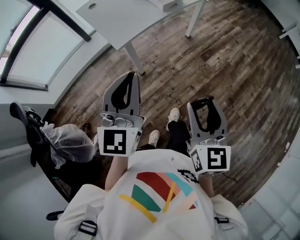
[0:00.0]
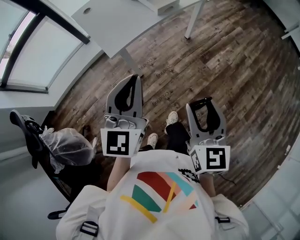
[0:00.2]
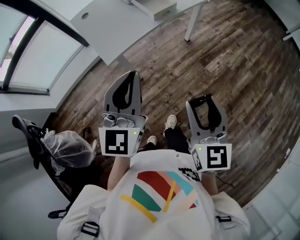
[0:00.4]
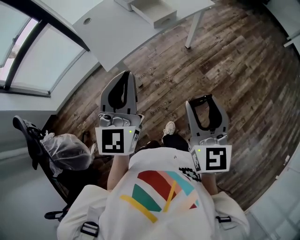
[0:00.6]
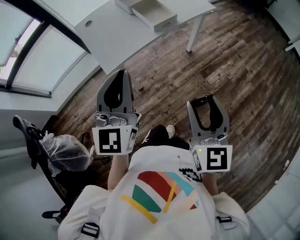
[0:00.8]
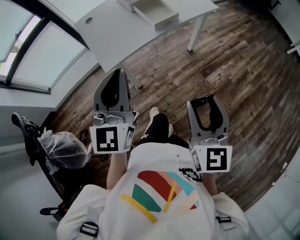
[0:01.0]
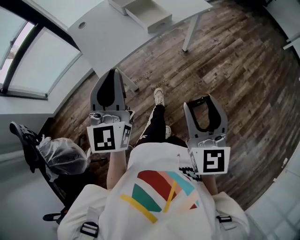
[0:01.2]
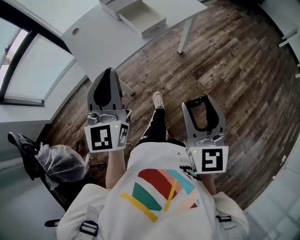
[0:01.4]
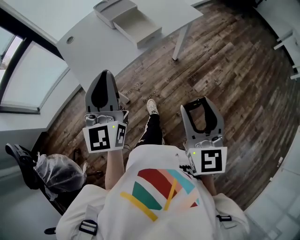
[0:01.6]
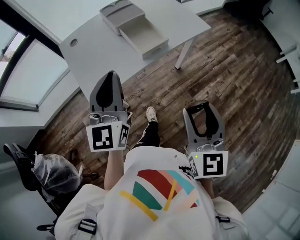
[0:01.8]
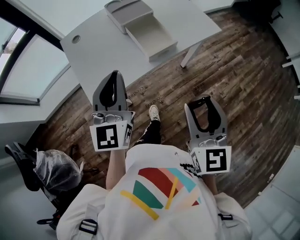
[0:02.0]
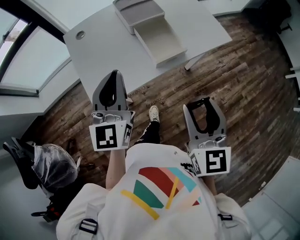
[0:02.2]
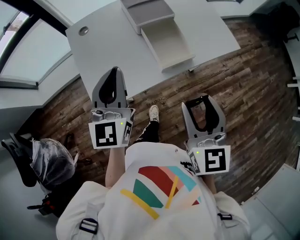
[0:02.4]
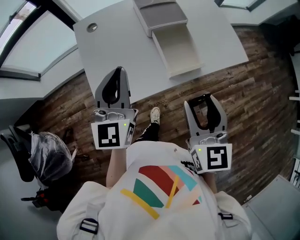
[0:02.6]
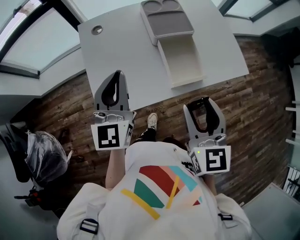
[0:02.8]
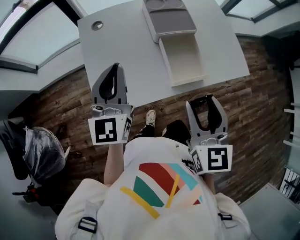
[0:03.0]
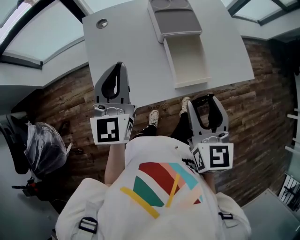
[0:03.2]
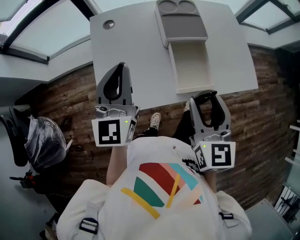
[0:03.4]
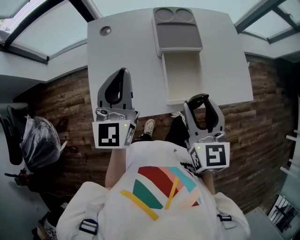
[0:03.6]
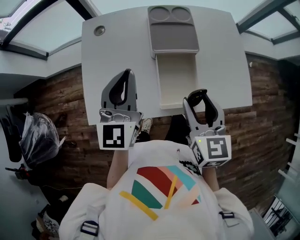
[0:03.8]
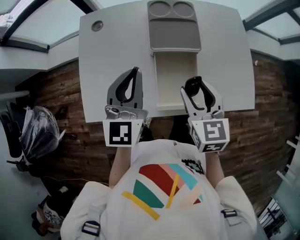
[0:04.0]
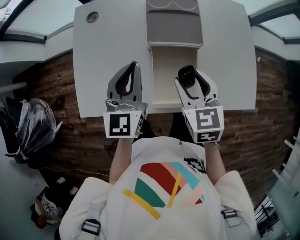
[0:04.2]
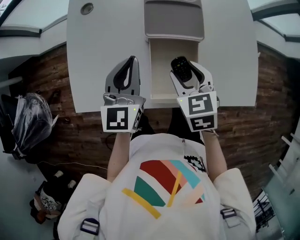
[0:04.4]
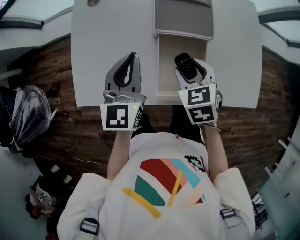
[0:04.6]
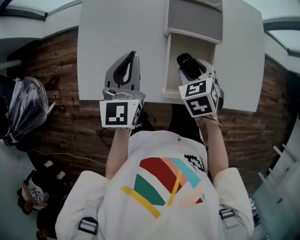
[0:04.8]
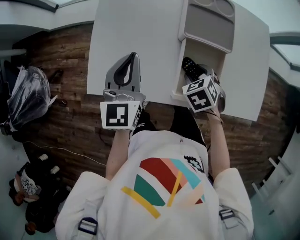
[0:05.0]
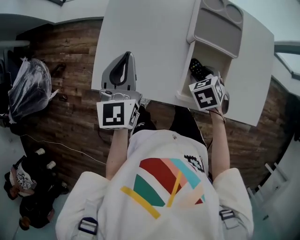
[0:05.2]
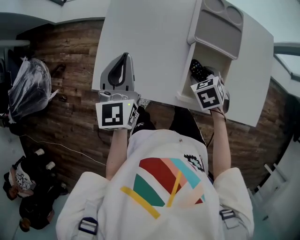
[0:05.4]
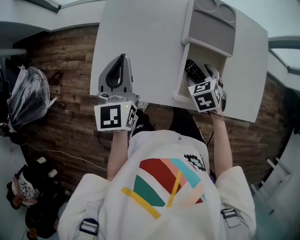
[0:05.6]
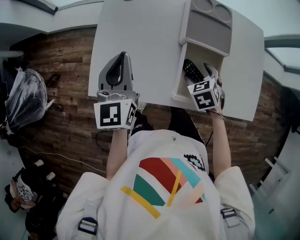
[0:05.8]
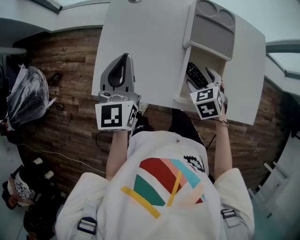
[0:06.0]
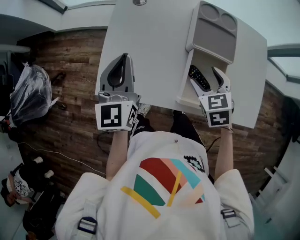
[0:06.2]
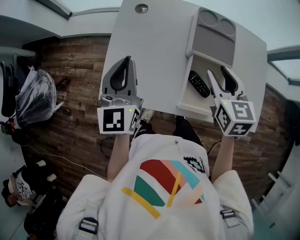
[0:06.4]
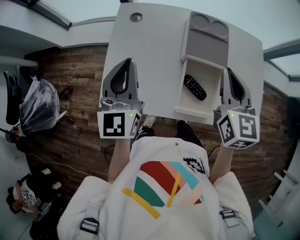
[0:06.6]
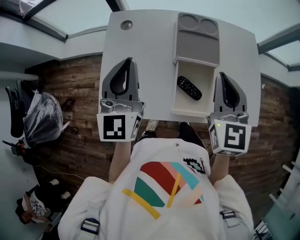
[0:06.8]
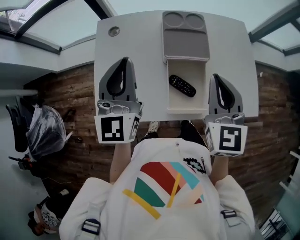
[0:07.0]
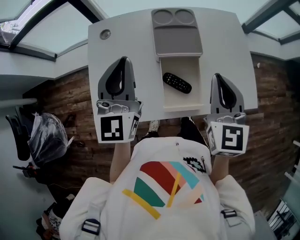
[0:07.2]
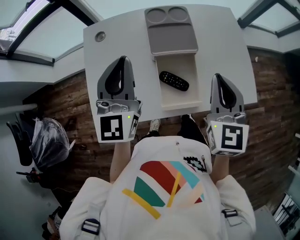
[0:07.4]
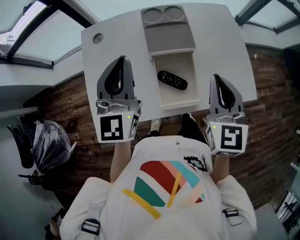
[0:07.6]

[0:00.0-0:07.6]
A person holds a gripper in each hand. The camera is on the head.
0:00.0 to 0:01.6: The left gripper moves forward, roughly 25 cm. Meanwhile the right gripper travels forward and to the right by some 25 cm.
0:01.6 to 0:03.0: The two grippers go approximately 25 cm forward. The right gripper swivels approximately 20 degrees. The left gripper changes its angle by roughly 20 degrees.
0:03.0 to 0:04.6: The left gripper shifts some 15 cm downward, to the right and forward, while the right gripper shifts approximately 25 cm forward and downward, and tips its fingers downward by some 30 degrees.
0:04.6 to 0:06.0: The left gripper goes roughly 15 cm to the left.
0:06.0 to 0:07.6: The right gripper moves upward and to the right, approximately 25 cm, points its fingers roughly 40 degrees further upward, and closes. The left gripper travels to the right and upward by some 20 cm, and turns by roughly 20 degrees.

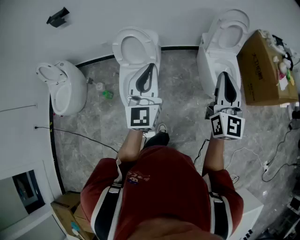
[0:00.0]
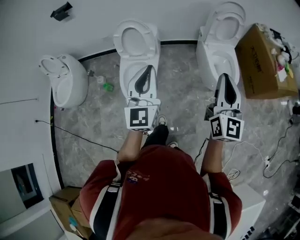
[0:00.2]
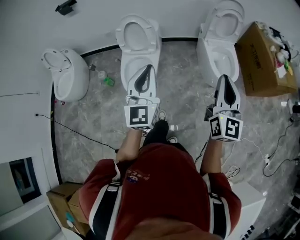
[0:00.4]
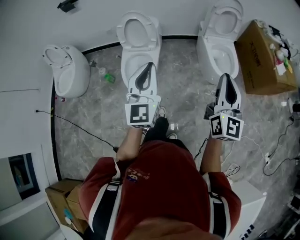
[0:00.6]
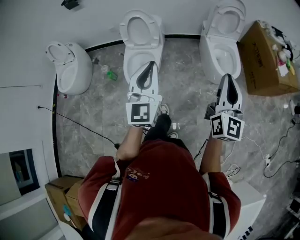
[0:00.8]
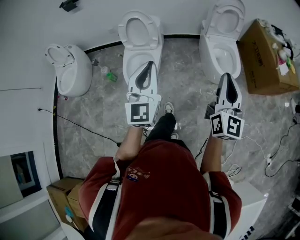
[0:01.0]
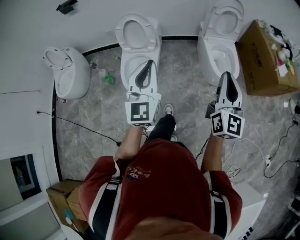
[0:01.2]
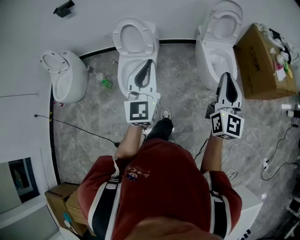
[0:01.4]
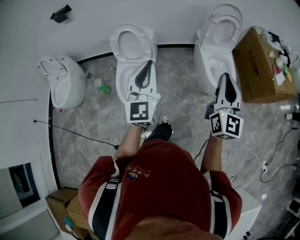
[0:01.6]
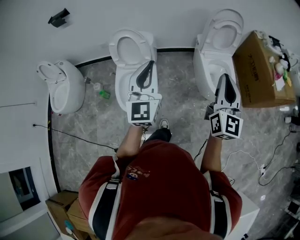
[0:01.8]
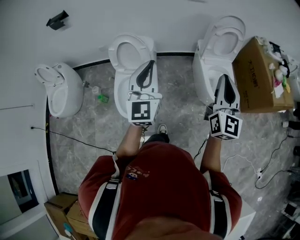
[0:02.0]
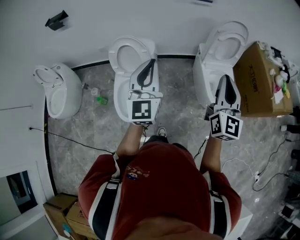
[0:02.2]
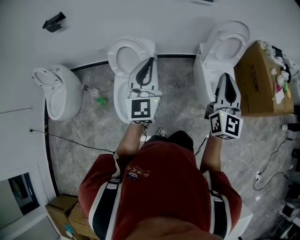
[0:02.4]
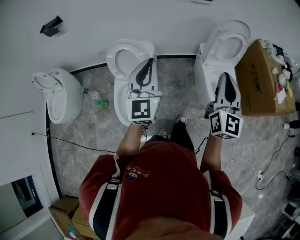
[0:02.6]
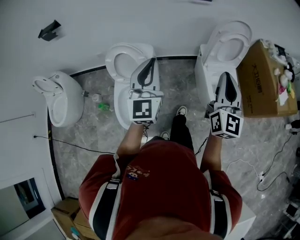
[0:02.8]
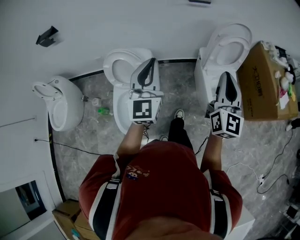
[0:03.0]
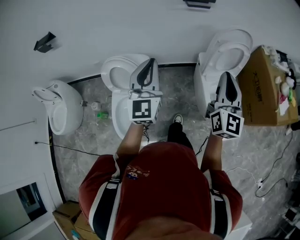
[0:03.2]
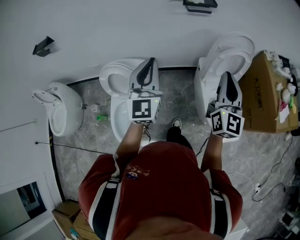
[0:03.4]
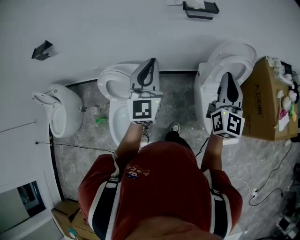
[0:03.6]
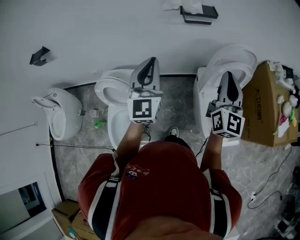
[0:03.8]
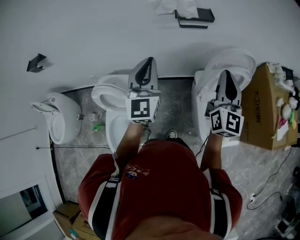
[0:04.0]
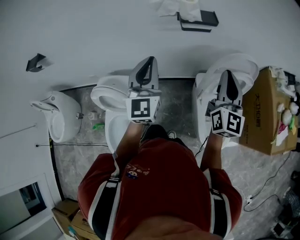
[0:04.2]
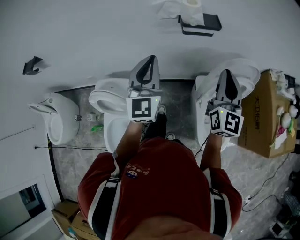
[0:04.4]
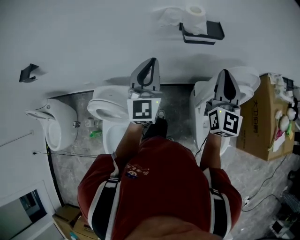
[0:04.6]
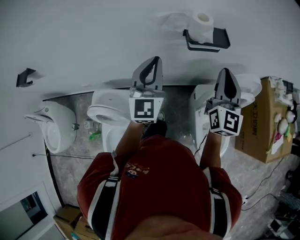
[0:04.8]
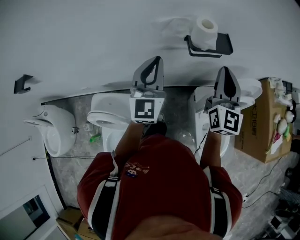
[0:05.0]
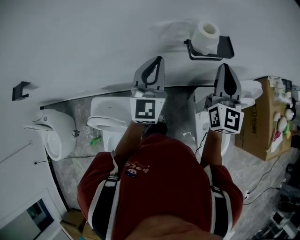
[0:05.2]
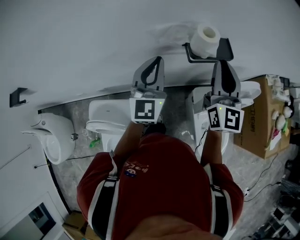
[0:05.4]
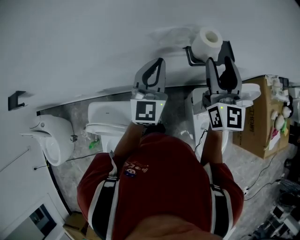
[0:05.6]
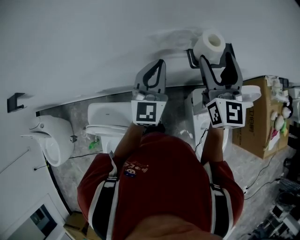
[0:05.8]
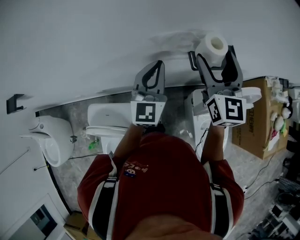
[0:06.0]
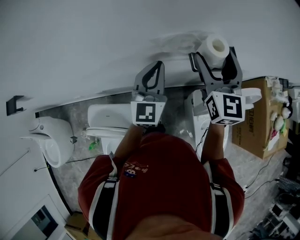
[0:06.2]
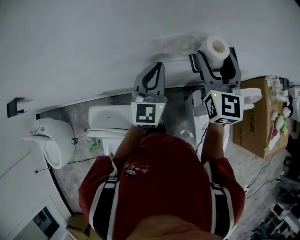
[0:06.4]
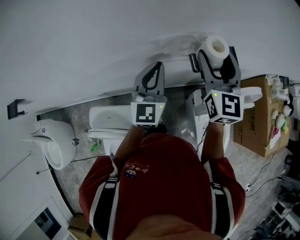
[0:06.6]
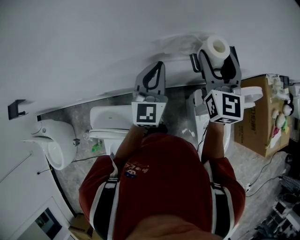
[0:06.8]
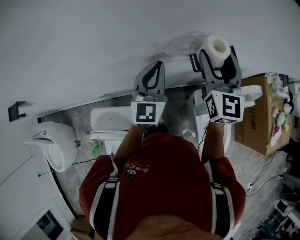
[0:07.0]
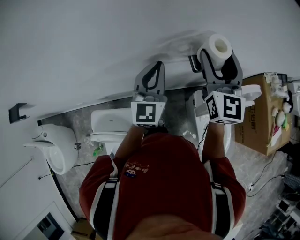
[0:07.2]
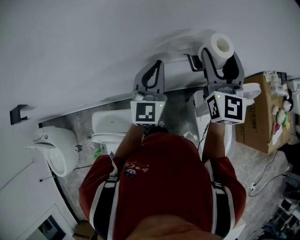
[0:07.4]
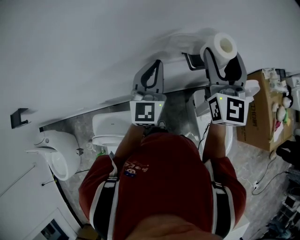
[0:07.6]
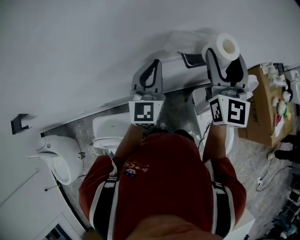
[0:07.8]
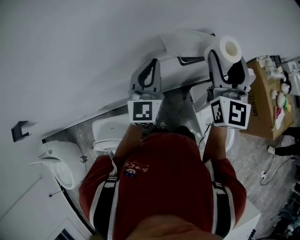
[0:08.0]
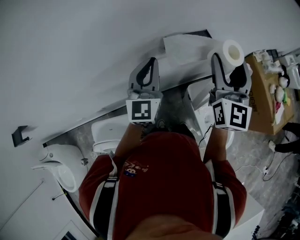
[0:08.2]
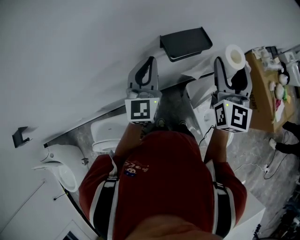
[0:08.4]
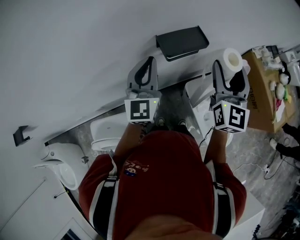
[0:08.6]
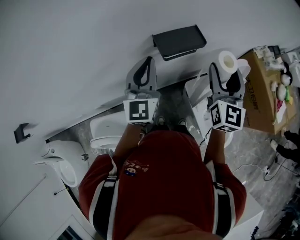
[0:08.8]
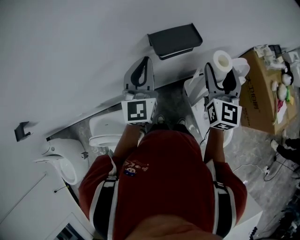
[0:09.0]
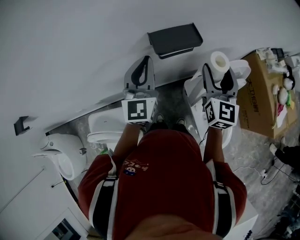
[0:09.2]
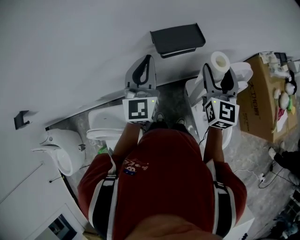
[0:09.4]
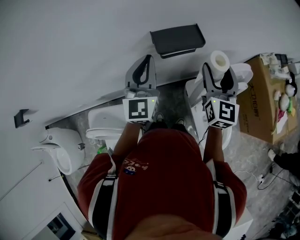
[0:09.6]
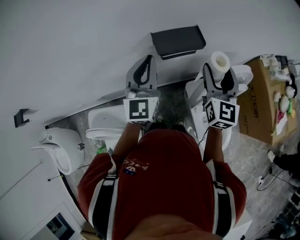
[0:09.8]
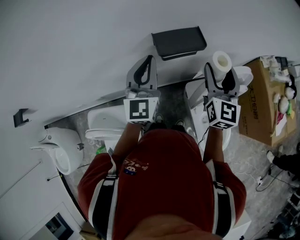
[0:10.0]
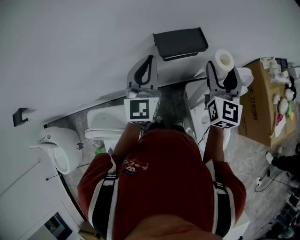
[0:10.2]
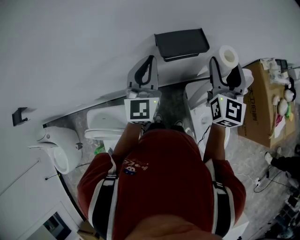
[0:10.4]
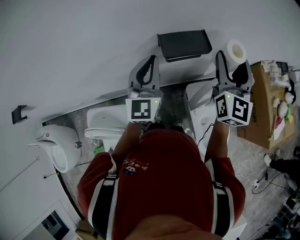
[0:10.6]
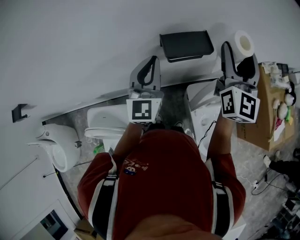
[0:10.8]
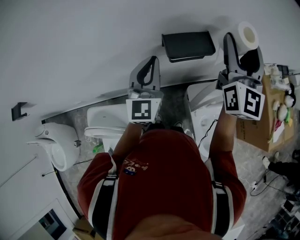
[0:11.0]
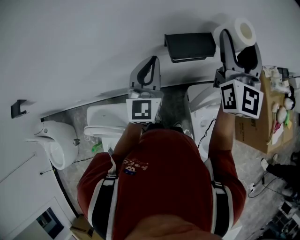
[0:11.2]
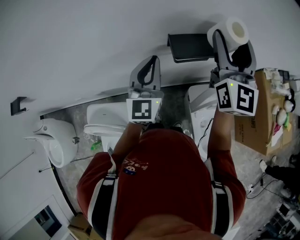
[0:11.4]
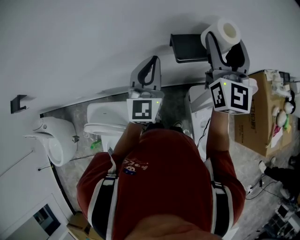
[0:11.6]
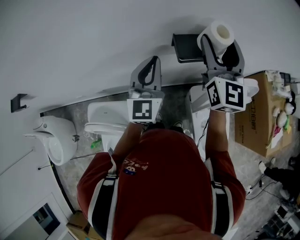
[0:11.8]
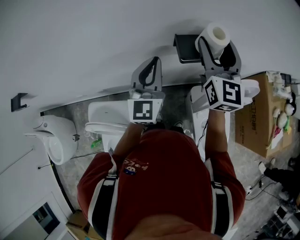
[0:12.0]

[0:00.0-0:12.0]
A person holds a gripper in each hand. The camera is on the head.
0:00.0 to 0:01.6: The left gripper moves to the right, some 5 cm, and moves approximately 25 cm backward and comes back, while the right gripper travels backward and to the right by about 15 cm.
0:01.6 to 0:03.0: Both grippers move forward, approximately 35 cm.
0:03.0 to 0:04.4: The two grippers travel together, forward, roughly 40 cm.
0:04.4 to 0:06.0: The left gripper heads forward, covering approximately 25 cm, while the right gripper travels forward and to the left by about 30 cm, and opens.
0:06.0 to 0:07.6: The right gripper heads upward, covering roughly 5 cm.
0:07.6 to 0:09.0: The left gripper goes about 10 cm to the right. The right gripper is displaced to the right and downward by about 20 cm.
0:09.0 to 0:10.4: The grippers move only a little.
0:10.4 to 0:12.0: The left gripper moves to the left, roughly 5 cm. Meanwhile the right gripper heads to the left and forward, covering about 15 cm.

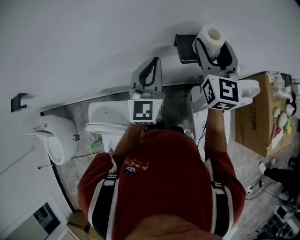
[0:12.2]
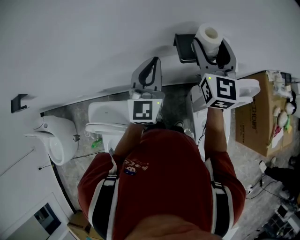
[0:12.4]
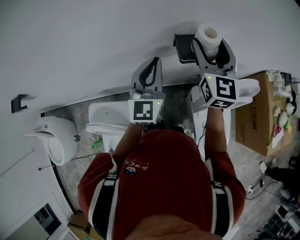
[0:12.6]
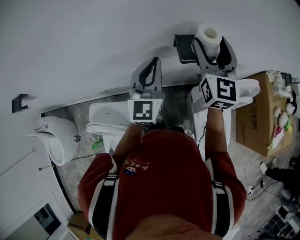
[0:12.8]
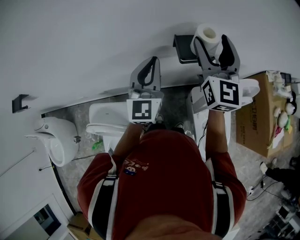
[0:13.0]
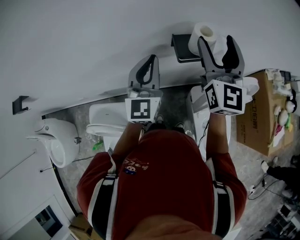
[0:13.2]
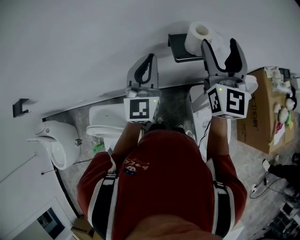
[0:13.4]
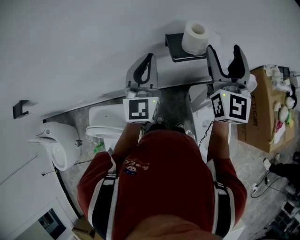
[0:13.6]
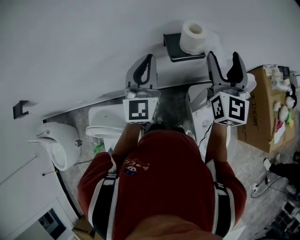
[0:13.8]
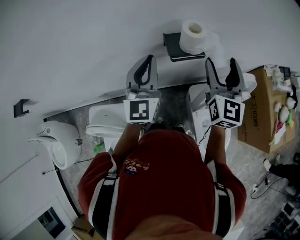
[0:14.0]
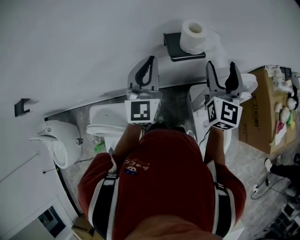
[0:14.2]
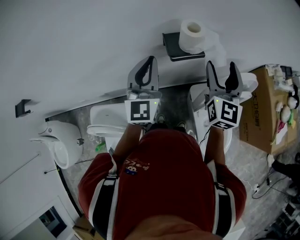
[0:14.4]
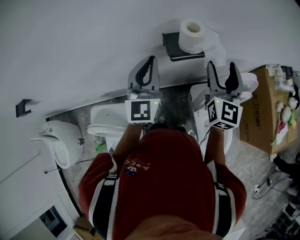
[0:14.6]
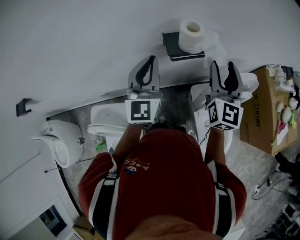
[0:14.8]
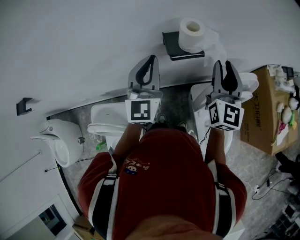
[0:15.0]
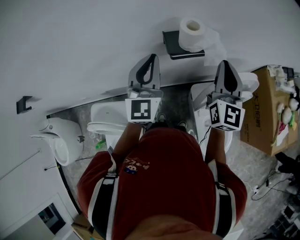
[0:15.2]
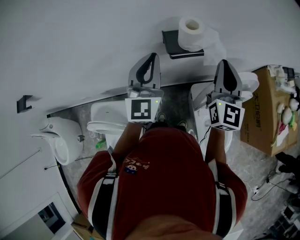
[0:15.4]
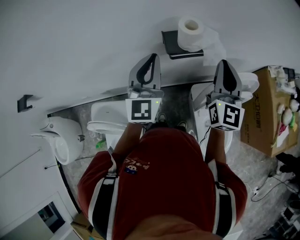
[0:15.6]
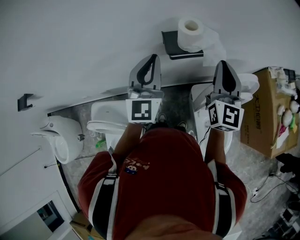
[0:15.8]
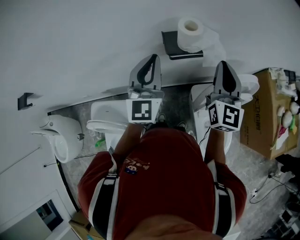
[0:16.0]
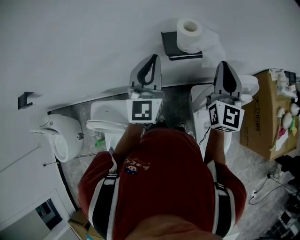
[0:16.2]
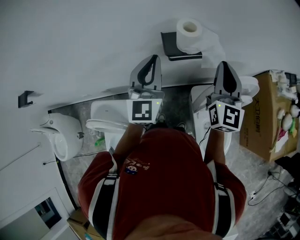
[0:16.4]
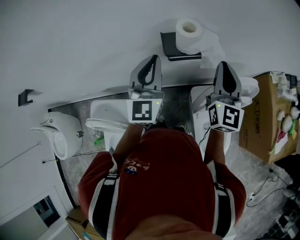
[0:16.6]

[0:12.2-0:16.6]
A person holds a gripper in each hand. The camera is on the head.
0:12.2 to 0:13.6: The right gripper shifts about 10 cm to the right and backward.
0:13.6 to 0:15.2: The right gripper shifts some 5 cm downward, and closes up.
0:15.2 to 0:16.6: The grippers stay close to where they were, moving slightly.
